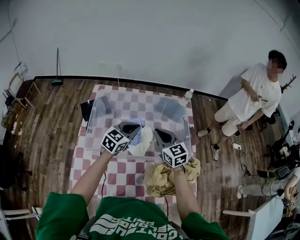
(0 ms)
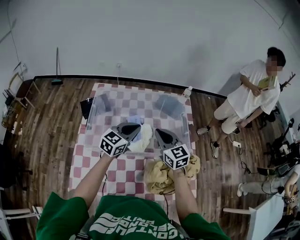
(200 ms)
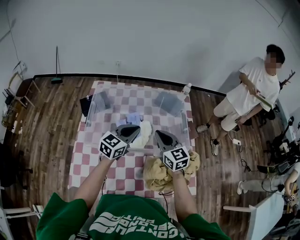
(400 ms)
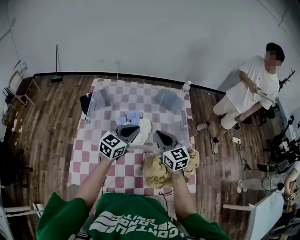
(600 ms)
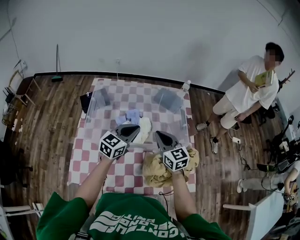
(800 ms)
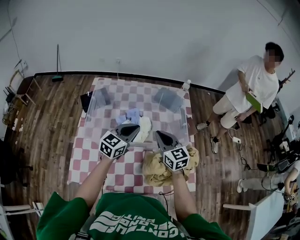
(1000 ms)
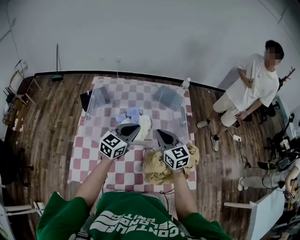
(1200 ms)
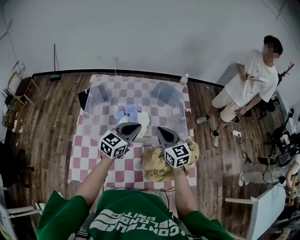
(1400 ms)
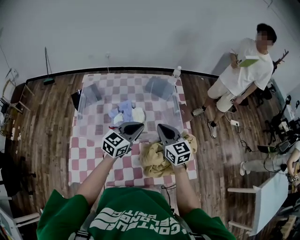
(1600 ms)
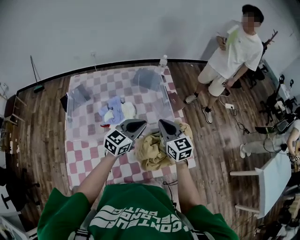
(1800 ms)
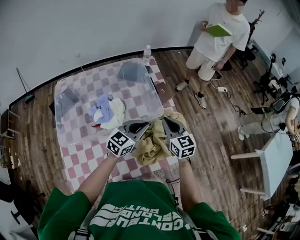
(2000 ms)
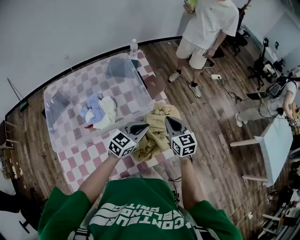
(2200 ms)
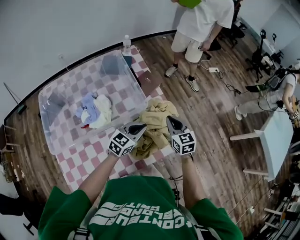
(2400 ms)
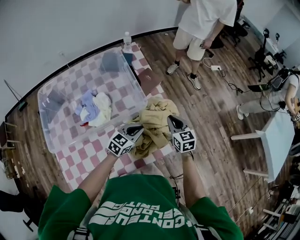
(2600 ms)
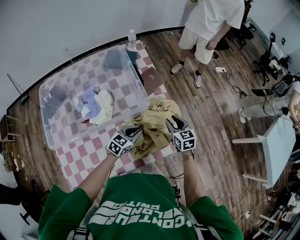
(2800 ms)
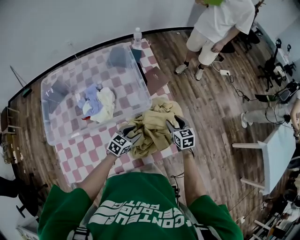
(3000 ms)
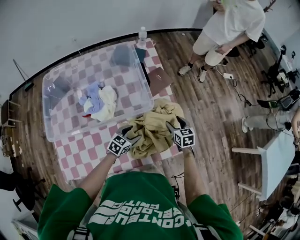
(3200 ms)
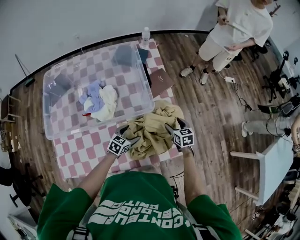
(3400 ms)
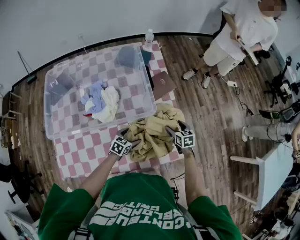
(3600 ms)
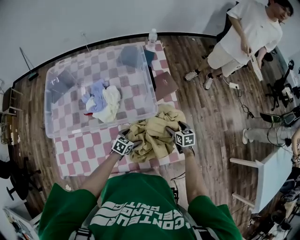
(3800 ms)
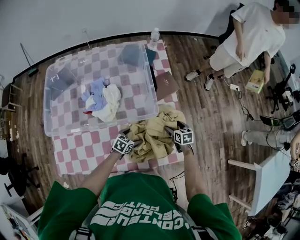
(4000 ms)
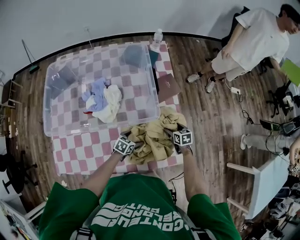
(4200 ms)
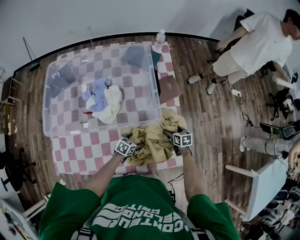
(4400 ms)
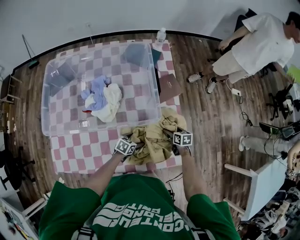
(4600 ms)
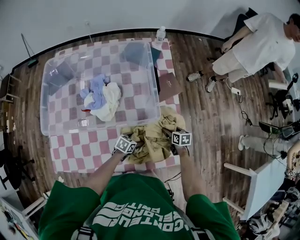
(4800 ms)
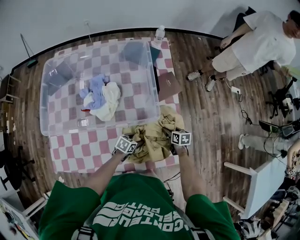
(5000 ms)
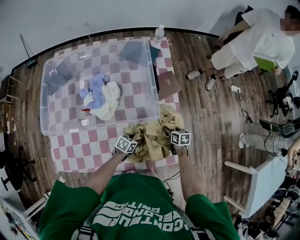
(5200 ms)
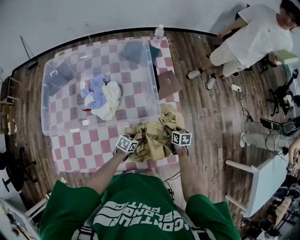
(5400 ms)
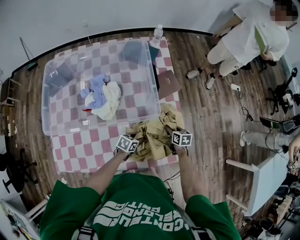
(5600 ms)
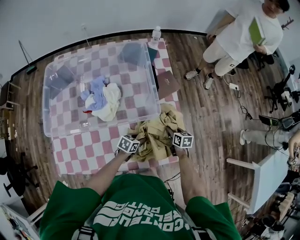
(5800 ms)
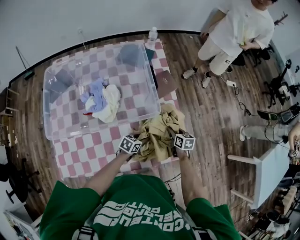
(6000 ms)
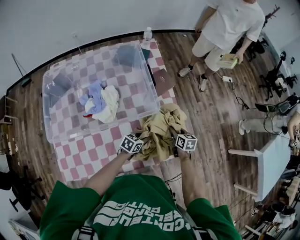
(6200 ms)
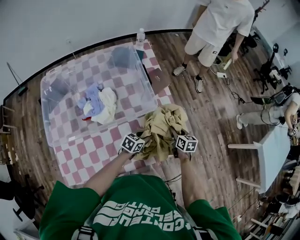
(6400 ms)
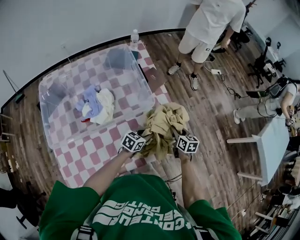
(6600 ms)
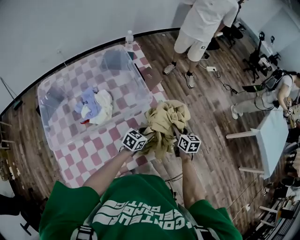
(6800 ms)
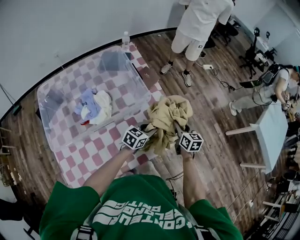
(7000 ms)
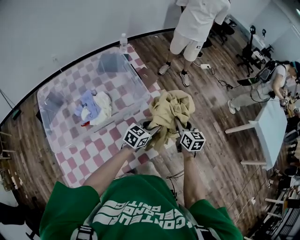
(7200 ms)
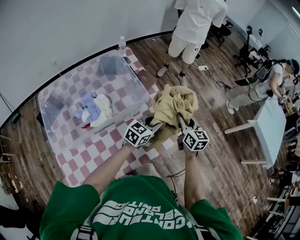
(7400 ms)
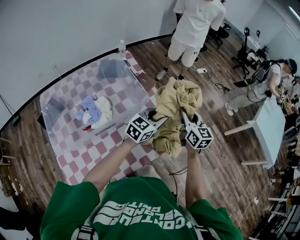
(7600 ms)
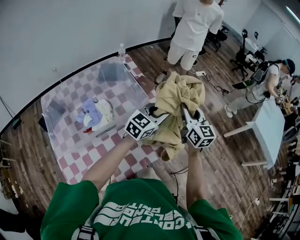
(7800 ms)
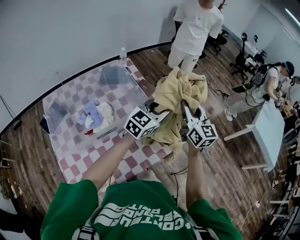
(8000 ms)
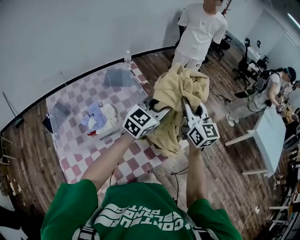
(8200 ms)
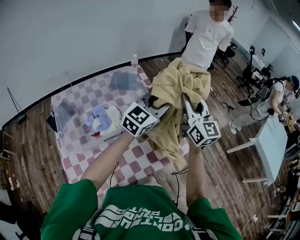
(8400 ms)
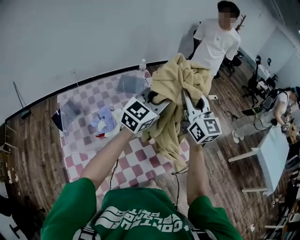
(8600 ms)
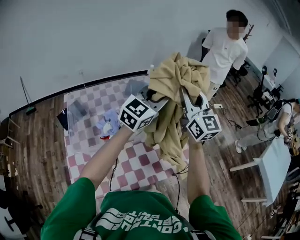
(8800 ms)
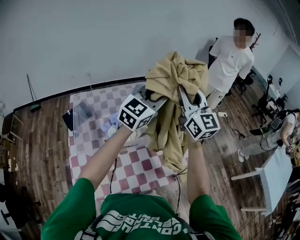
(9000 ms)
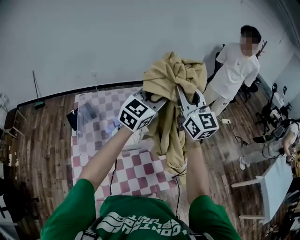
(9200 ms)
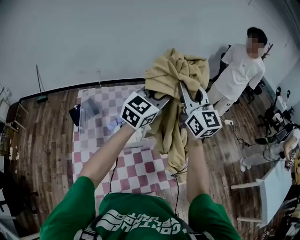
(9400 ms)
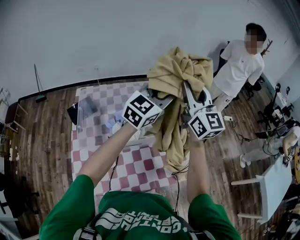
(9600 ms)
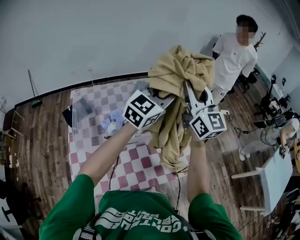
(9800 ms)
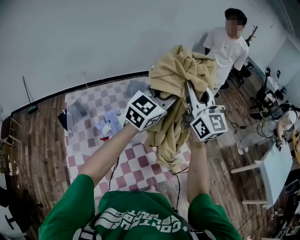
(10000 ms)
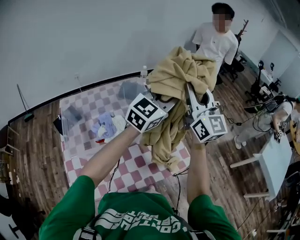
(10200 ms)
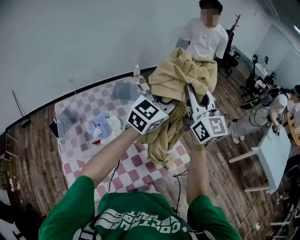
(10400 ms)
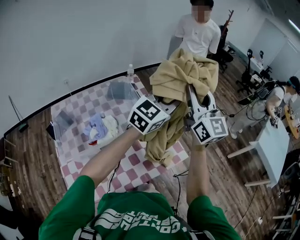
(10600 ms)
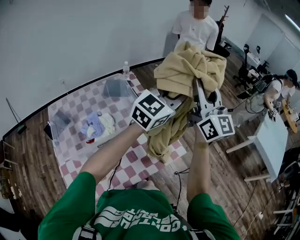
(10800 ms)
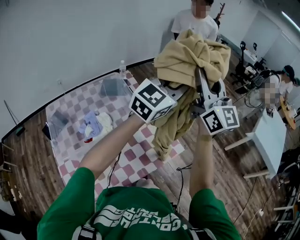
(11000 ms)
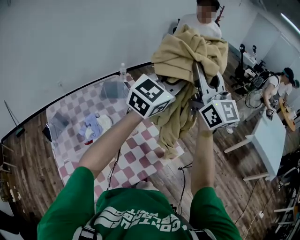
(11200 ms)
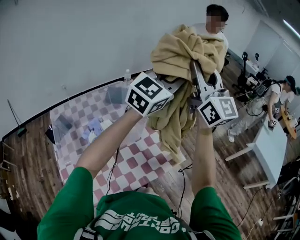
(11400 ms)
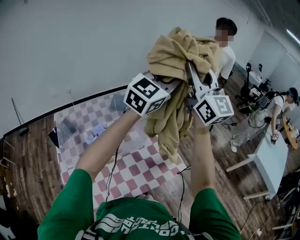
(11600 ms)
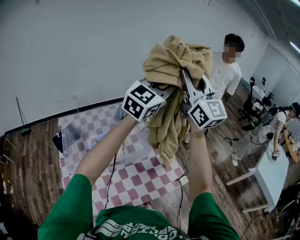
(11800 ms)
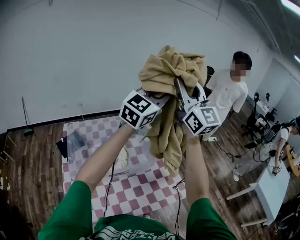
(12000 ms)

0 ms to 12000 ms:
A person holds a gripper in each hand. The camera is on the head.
0 ms to 1600 ms: The two grippers go some 15 cm backward and to the right.
1600 ms to 3000 ms: The left gripper goes some 25 cm downward, turns by about 30 degrees, and opens up. Meanwhile the right gripper shifts by approximately 35 cm, rotates approximately 30 degrees, and opens its fingers.
3000 ms to 4400 ms: Both grippers travel together downward, approximately 15 cm. The right gripper changes its angle by some 20 degrees, and opens up. Meanwhile the left gripper turns by roughly 30 degrees, and opens up.
4400 ms to 6000 ms: Both grippers move upward, approximately 5 cm. The right gripper closes its fingers; the left gripper closes up.
6000 ms to 7600 ms: The grippers both shift upward by about 30 cm. The left gripper changes its angle by roughly 50 degrees; the right gripper angles its fingers upward, by some 30 degrees.
7600 ms to 9000 ms: The two grippers go about 35 cm upward and to the left. The left gripper rotates approximately 30 degrees. The right gripper turns by some 40 degrees.
9000 ms to 10400 ms: Both grippers move to the right, some 15 cm.
10400 ms to 12000 ms: The two grippers go approximately 20 cm upward and to the left.

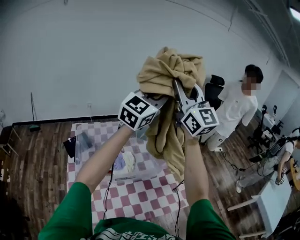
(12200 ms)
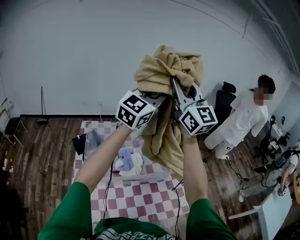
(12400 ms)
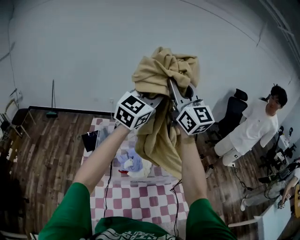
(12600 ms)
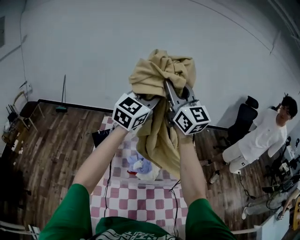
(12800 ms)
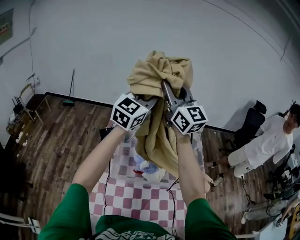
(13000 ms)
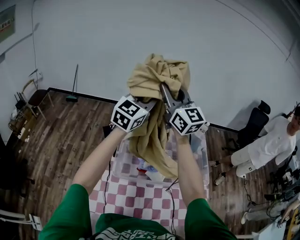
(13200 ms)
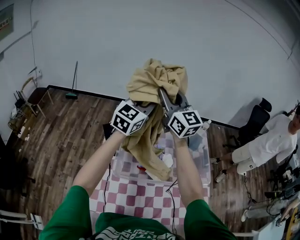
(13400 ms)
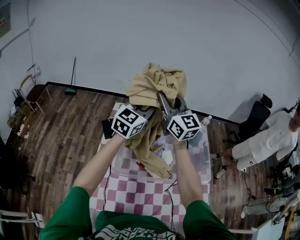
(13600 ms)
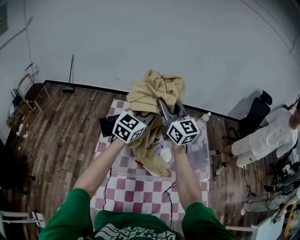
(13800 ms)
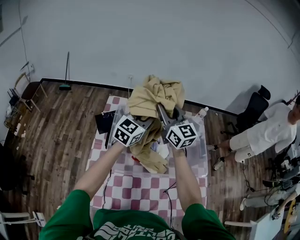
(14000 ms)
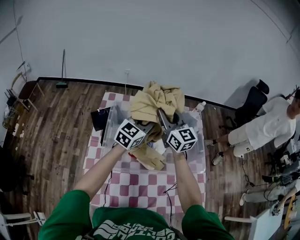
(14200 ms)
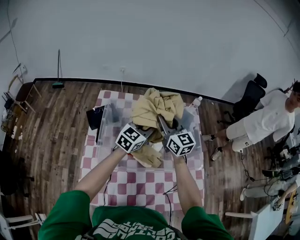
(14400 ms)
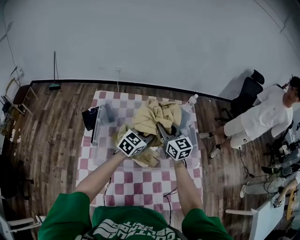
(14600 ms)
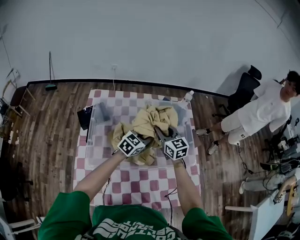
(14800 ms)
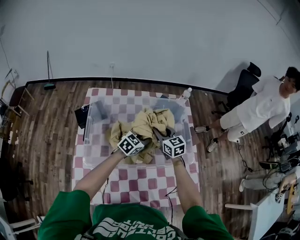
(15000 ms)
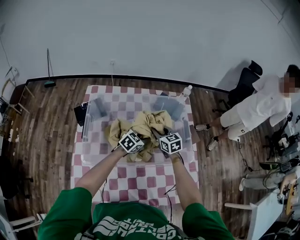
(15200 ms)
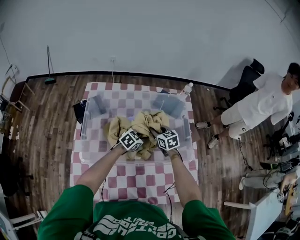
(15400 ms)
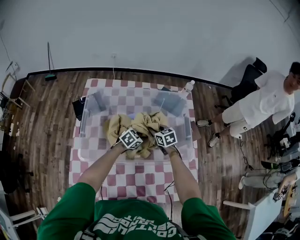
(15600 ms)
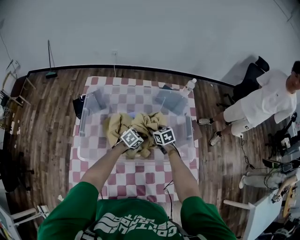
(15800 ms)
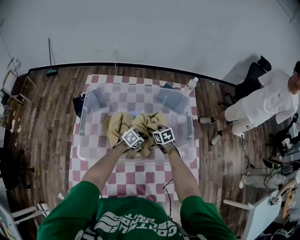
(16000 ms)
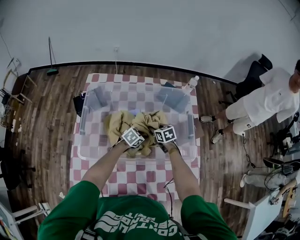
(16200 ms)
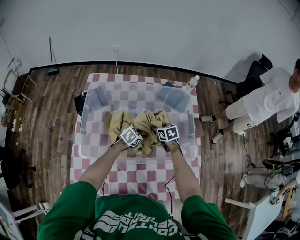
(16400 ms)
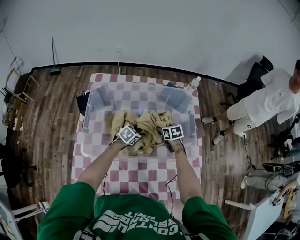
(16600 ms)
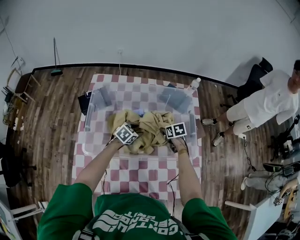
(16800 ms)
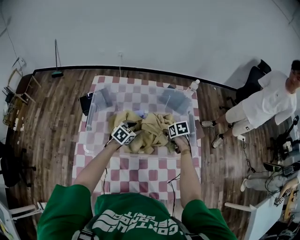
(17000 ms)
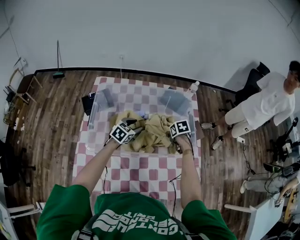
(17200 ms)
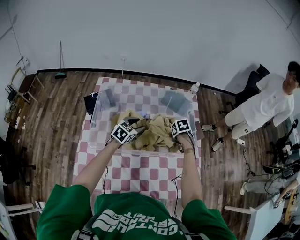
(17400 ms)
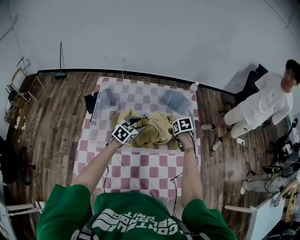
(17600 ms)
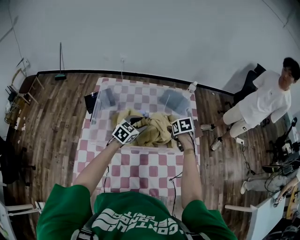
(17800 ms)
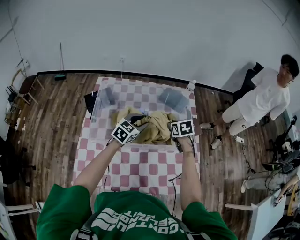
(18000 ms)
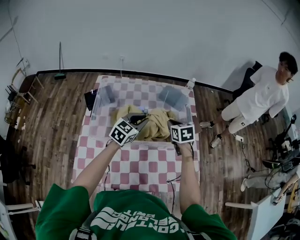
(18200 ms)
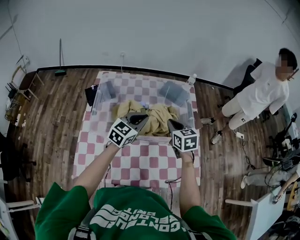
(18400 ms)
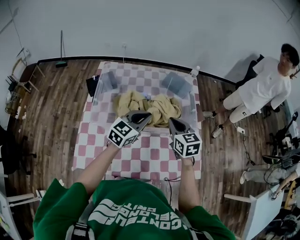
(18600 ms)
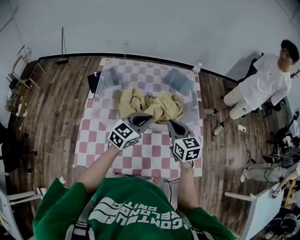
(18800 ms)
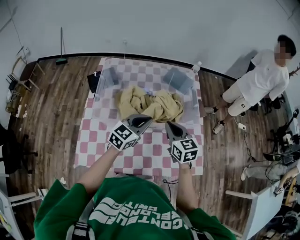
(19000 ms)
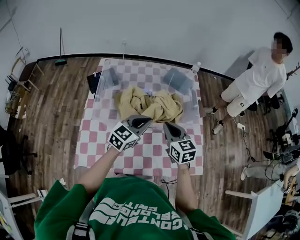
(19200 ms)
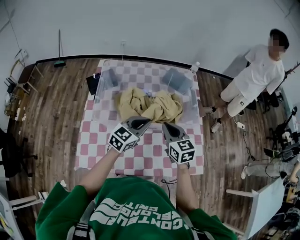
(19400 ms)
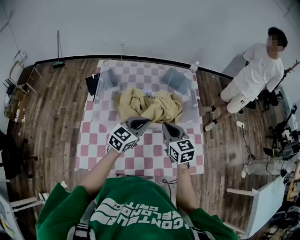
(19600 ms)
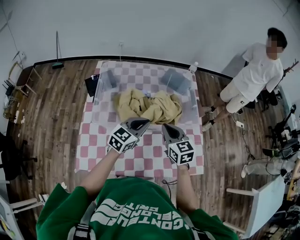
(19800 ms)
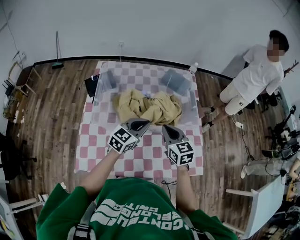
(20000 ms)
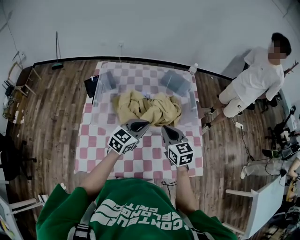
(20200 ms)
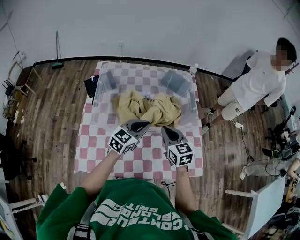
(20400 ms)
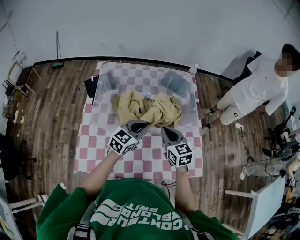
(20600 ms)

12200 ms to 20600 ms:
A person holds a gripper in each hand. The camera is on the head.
12200 ms to 13600 ms: The right gripper shifts by approximately 40 cm, and swivels approximately 30 degrees. The left gripper changes place by about 40 cm, and rotates roughly 30 degrees.
13600 ms to 15000 ms: The two grippers go approximately 40 cm downward and to the right. The left gripper swivels approximately 40 degrees; the right gripper points its fingers about 30 degrees further downward.
15000 ms to 16400 ms: Both grippers travel together downward, some 15 cm. The left gripper changes its angle by approximately 20 degrees. Meanwhile the right gripper turns by approximately 30 degrees.
16400 ms to 17800 ms: The grippers both shift upward by approximately 15 cm. The left gripper turns by about 30 degrees.
17800 ms to 19200 ms: Both grippers travel together backward and upward, some 20 cm. The right gripper points its fingers about 40 degrees further upward, and closes up. Meanwhile the left gripper closes.
19200 ms to 20600 ms: The grippers move only a little.

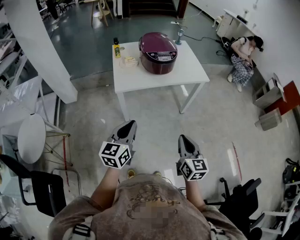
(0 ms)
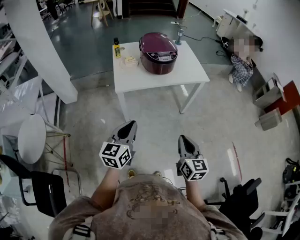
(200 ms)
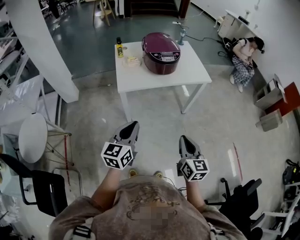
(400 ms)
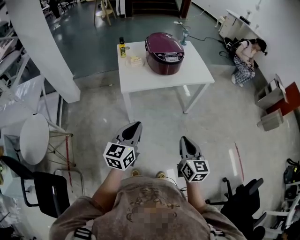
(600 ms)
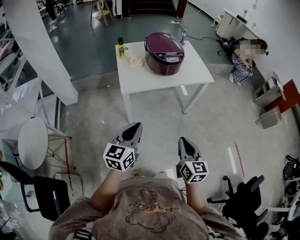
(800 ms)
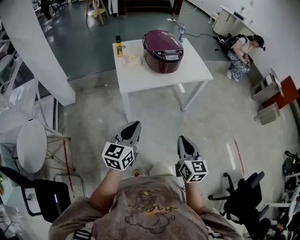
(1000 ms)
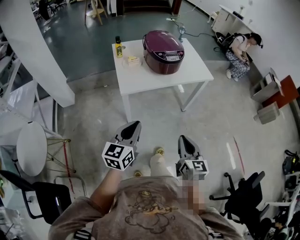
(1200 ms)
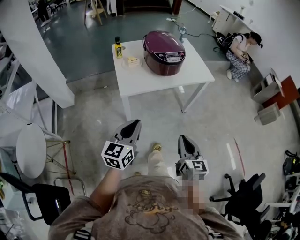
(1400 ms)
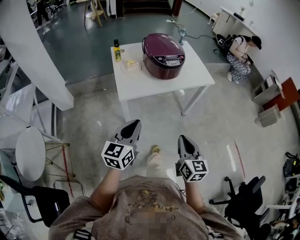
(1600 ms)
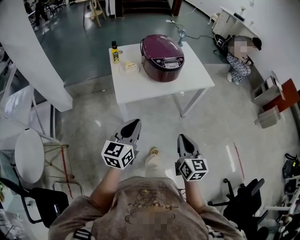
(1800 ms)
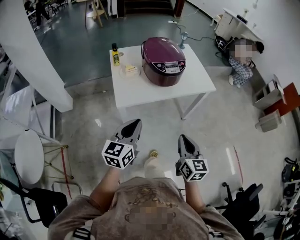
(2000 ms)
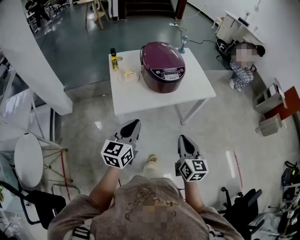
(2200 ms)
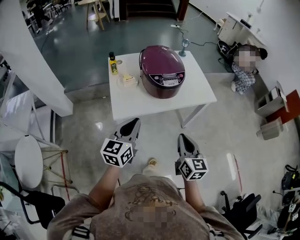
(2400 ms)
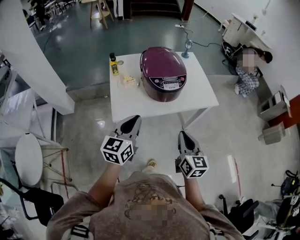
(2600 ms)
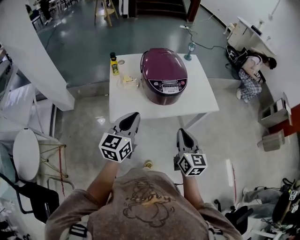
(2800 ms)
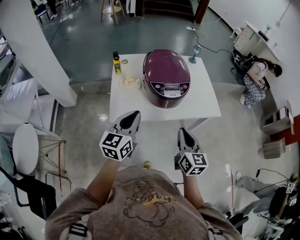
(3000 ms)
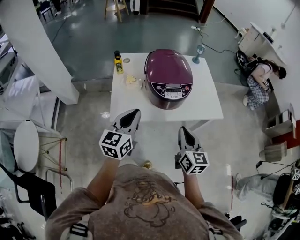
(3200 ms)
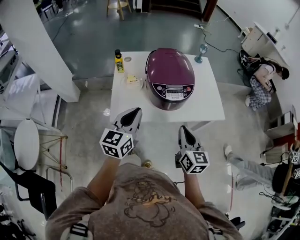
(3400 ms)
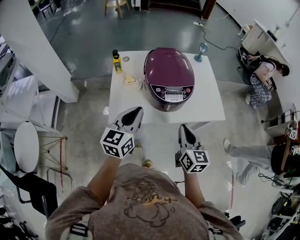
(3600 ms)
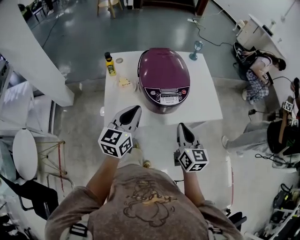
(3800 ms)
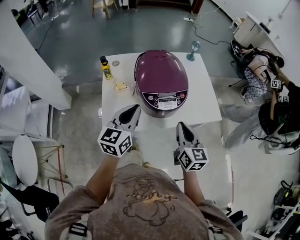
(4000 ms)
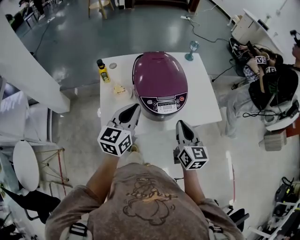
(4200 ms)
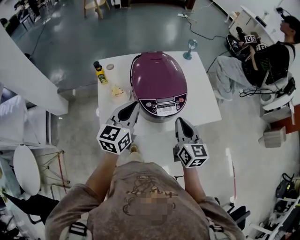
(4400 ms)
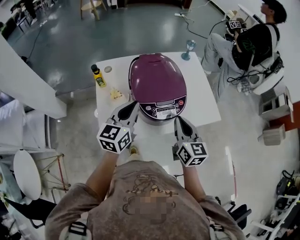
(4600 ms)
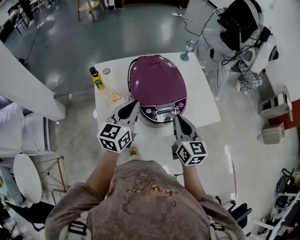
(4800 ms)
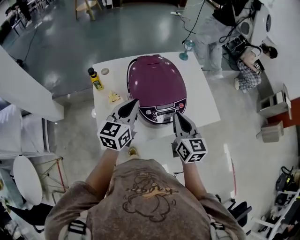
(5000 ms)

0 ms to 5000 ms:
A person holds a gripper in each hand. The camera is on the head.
0 ms to 1600 ms: The right gripper moves to the left and forward, about 10 cm, while the left gripper shifts some 10 cm forward and to the left.
1600 ms to 3400 ms: The two grippers go about 30 cm forward.
3400 ms to 5000 ms: The two grippers go roughly 20 cm forward.
